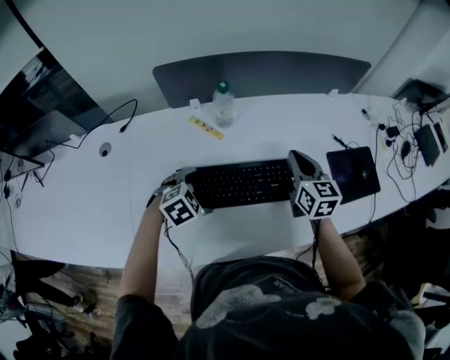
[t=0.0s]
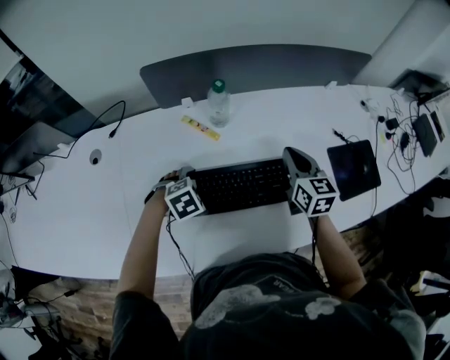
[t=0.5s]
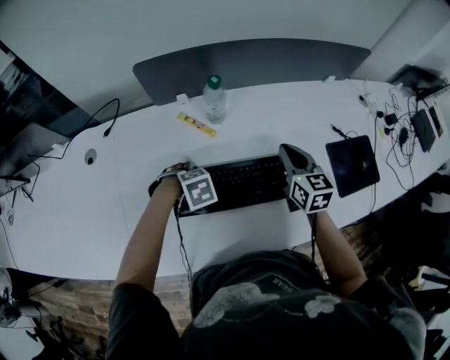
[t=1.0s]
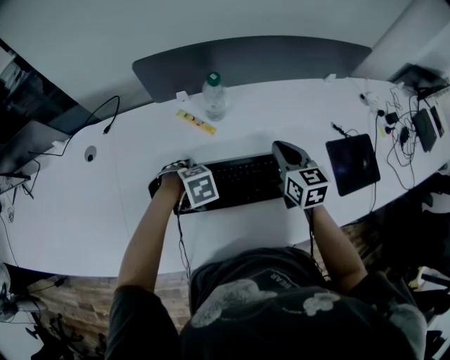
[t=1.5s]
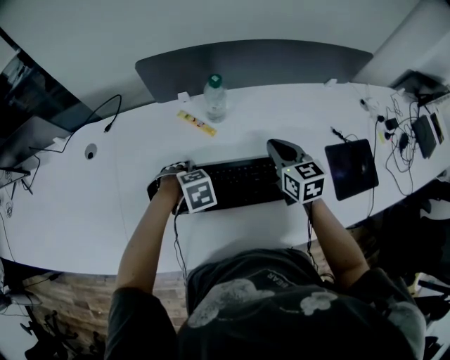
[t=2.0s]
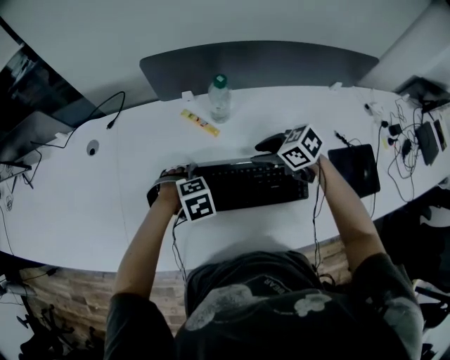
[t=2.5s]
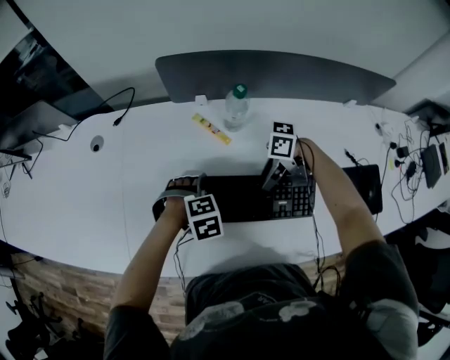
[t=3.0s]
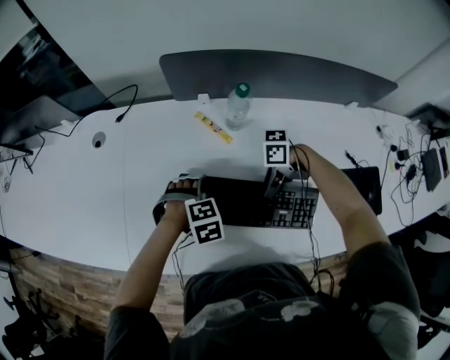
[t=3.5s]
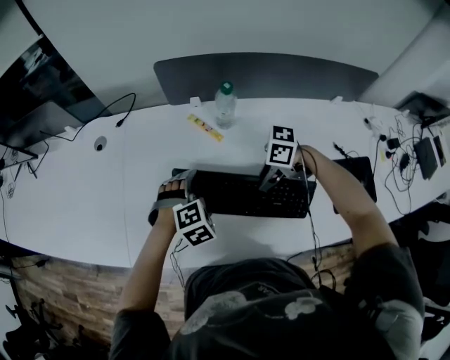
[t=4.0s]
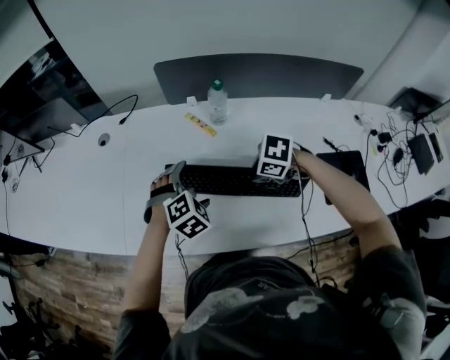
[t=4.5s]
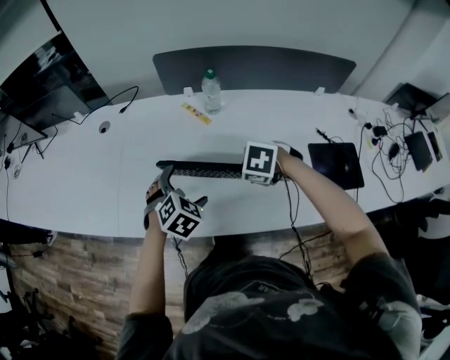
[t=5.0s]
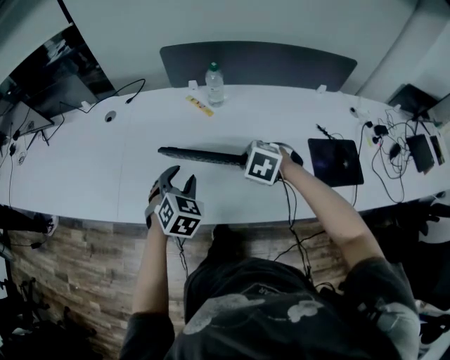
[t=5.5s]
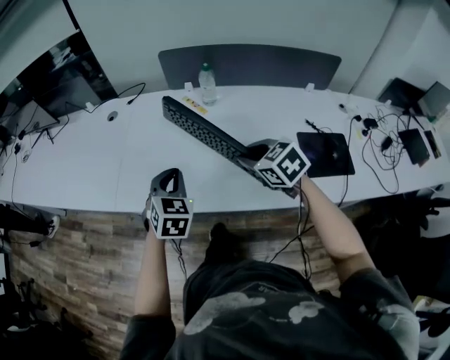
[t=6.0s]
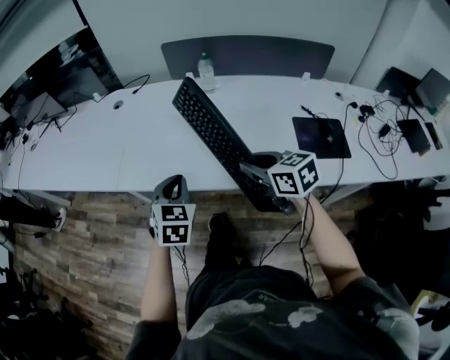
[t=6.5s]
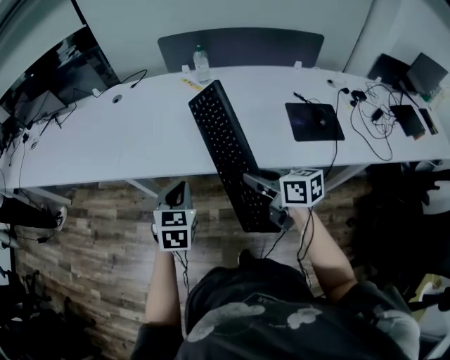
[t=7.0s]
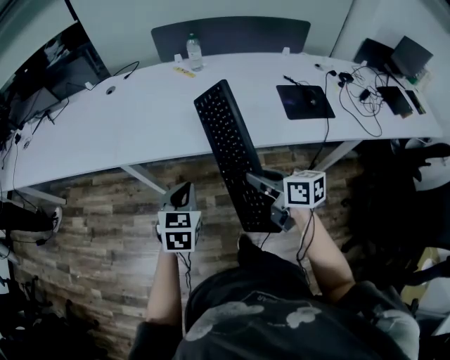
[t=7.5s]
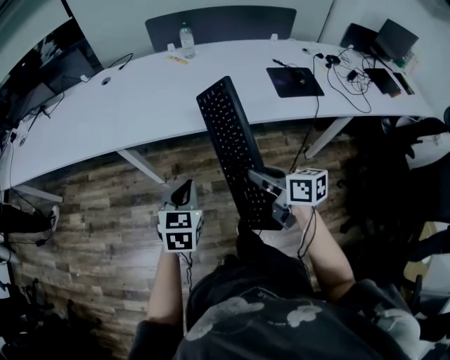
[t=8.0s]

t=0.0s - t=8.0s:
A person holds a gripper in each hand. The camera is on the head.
t=0.0s - t=2.0s: The left gripper turns by some 30 degrees; the right gripper shifts by roughly 5 cm.
t=2.0s - t=4.0s: The left gripper heads upward, covering roughly 5 cm, and rotates some 30 degrees. The right gripper changes place by about 15 cm, rotates about 90 degrees, and opens.
t=4.0s - t=6.0s: The left gripper shifts by approximately 20 cm, angles its fingers upward, by roughly 30 degrees, and closes. Meanwhile the right gripper is displaced upward by roughly 15 cm, and swivels roughly 60 degrees.
t=6.0s - t=8.0s: The grippers both shift backward by some 35 cm. The right gripper rolls clockwise, seen from behind, by approximately 50 degrees.

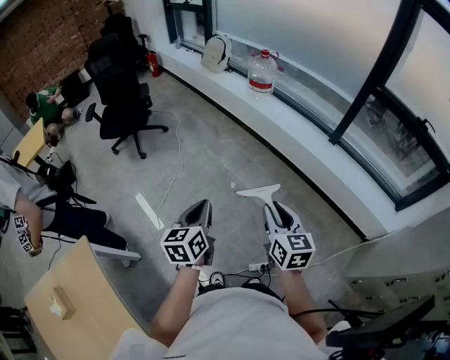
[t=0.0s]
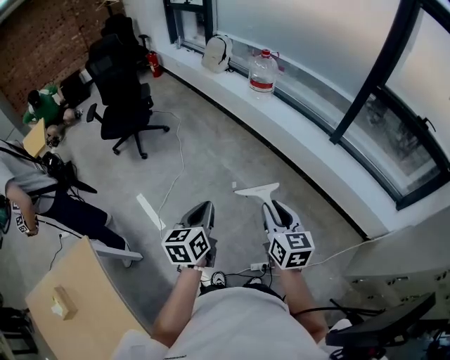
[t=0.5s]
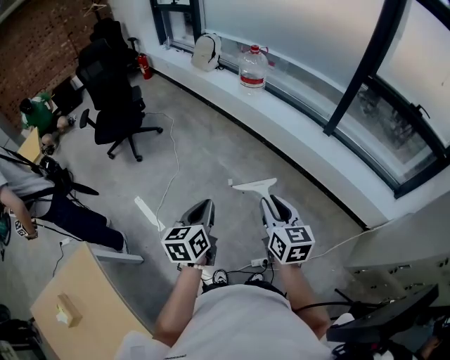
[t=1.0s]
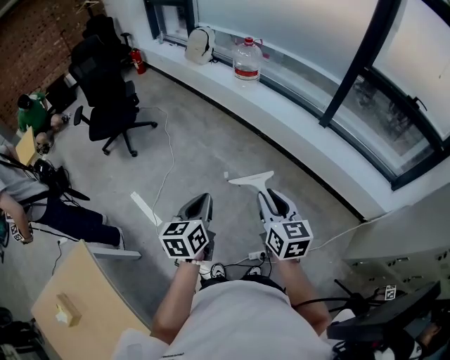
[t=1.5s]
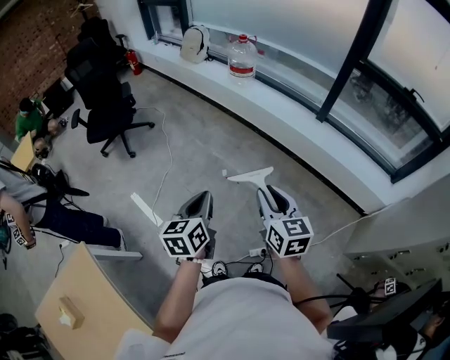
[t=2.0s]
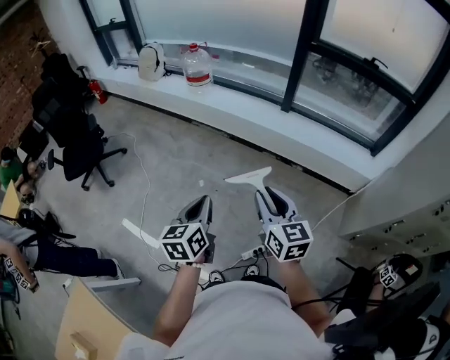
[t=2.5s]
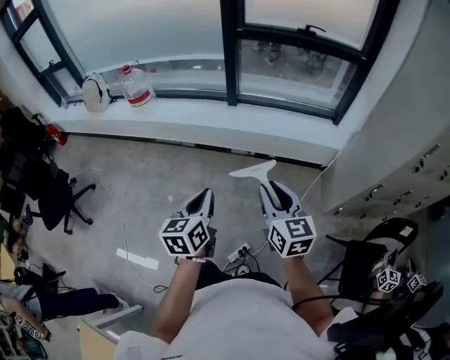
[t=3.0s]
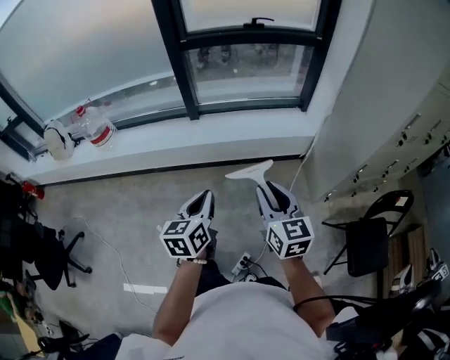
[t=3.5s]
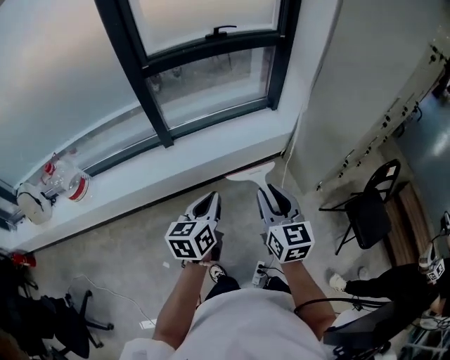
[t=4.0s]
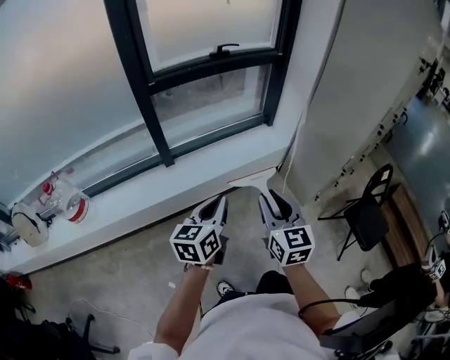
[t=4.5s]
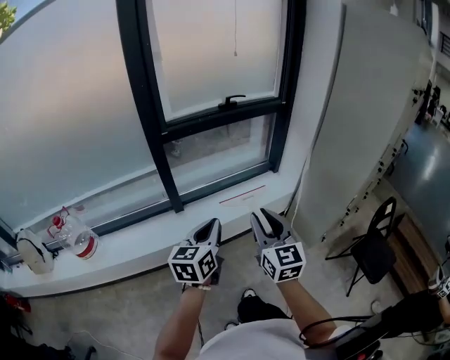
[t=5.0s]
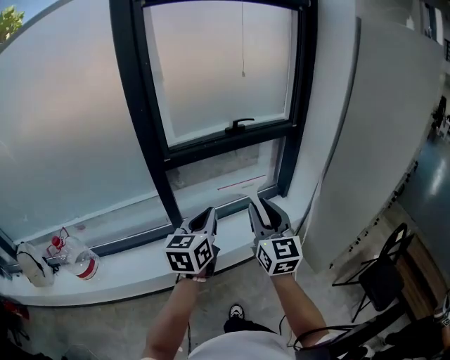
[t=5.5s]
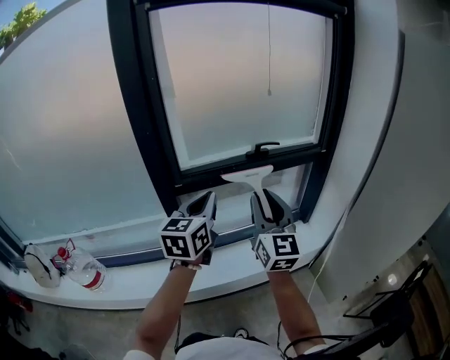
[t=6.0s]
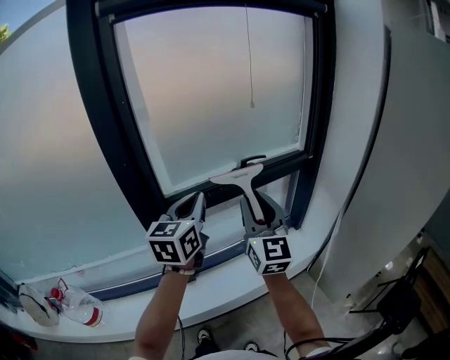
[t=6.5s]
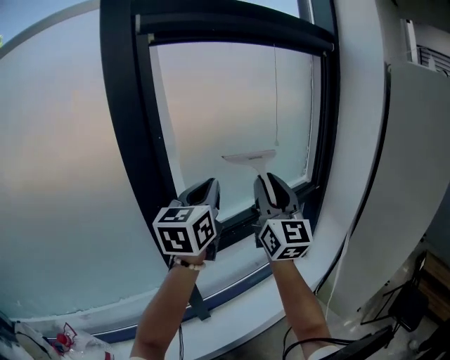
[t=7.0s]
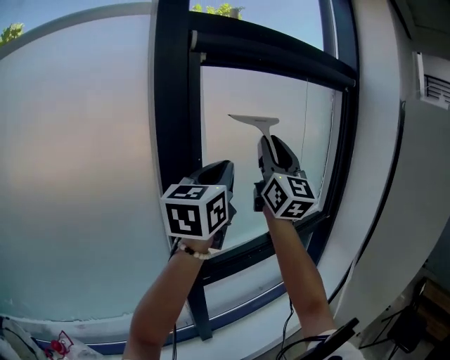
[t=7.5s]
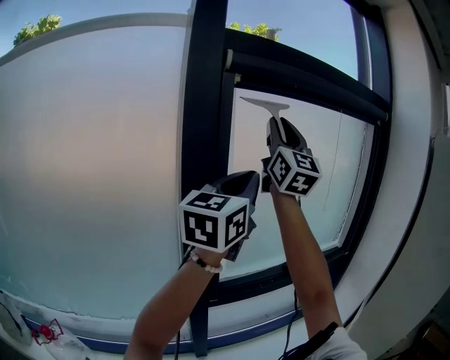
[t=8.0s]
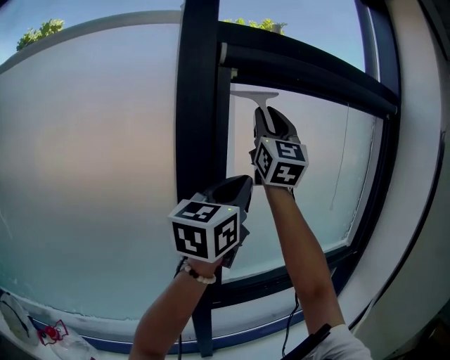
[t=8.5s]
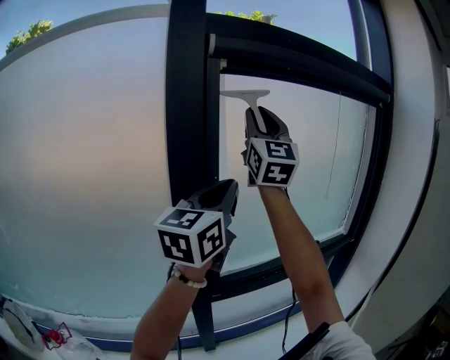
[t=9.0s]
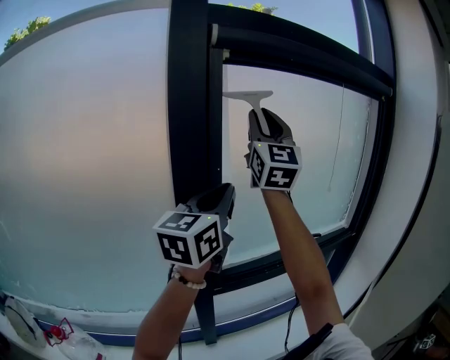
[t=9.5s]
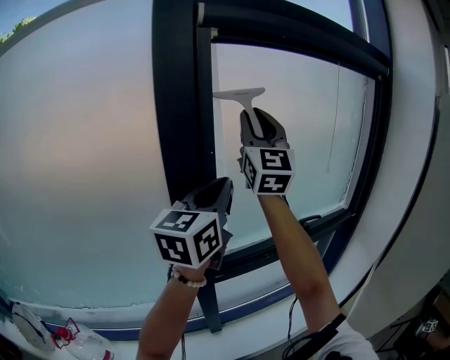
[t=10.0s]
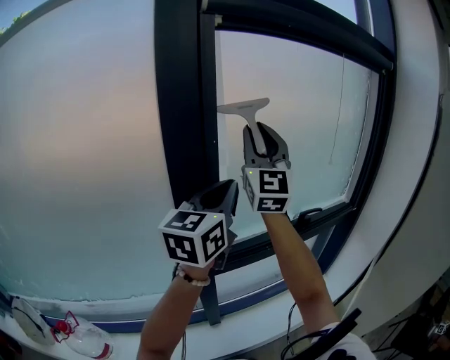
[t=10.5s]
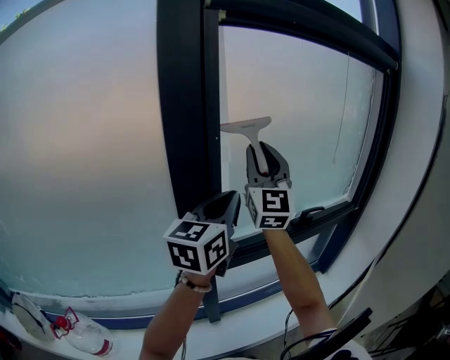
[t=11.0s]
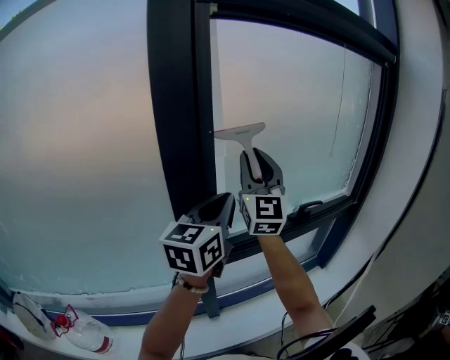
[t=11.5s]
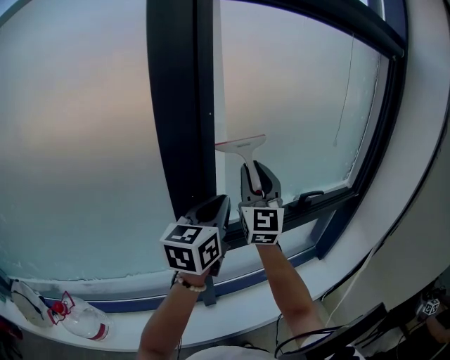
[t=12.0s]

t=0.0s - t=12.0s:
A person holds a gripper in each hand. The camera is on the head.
t=0.0s - t=2.0s: The grippers stay close to where they were, moving slightly.
t=2.0s - t=4.0s: The two grippers travel together, some 50 cm. The left gripper rotates some 70 degrees. Meanwhile the right gripper changes its angle by approximately 60 degrees.
t=4.0s - t=6.0s: The two grippers travel together, forward and to the left, some 40 cm. Both grippers move upward, approximately 20 cm. The left gripper turns by approximately 20 degrees. Meanwhile the right gripper turns by about 30 degrees.
t=6.0s - t=8.0s: The two grippers go approximately 50 cm upward, to the left and forward. The right gripper turns by approximately 30 degrees, while the left gripper changes its angle by about 30 degrees.
t=8.0s - t=10.0s: Both grippers travel together downward, approximately 10 cm.
t=10.0s - t=12.0s: The right gripper travels downward by some 25 cm. Meanwhile the left gripper moves downward, approximately 15 cm.

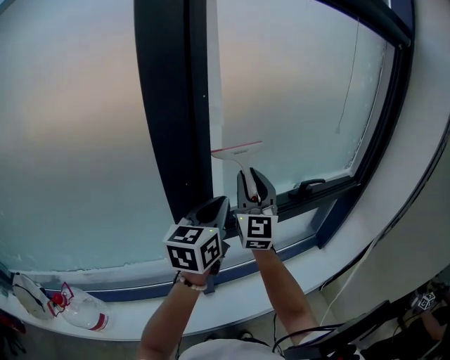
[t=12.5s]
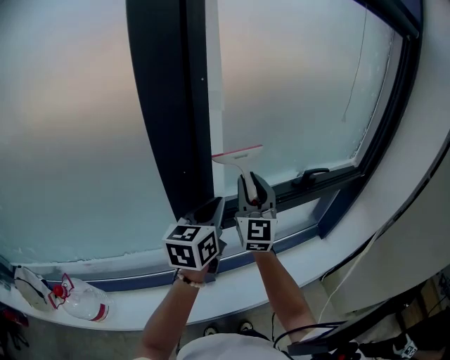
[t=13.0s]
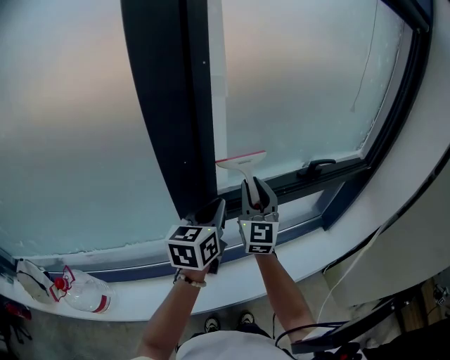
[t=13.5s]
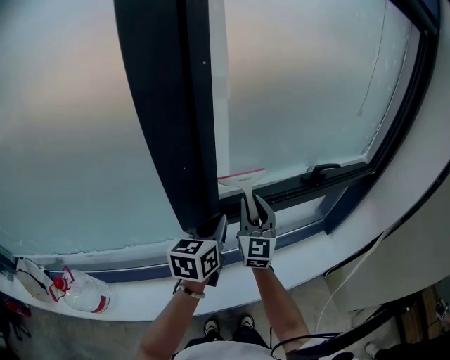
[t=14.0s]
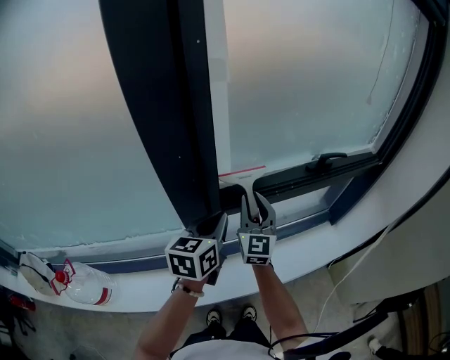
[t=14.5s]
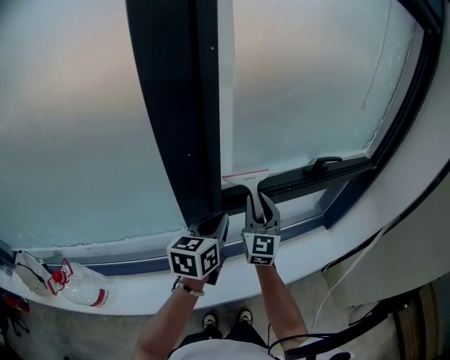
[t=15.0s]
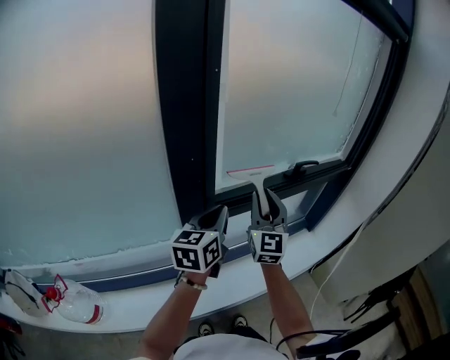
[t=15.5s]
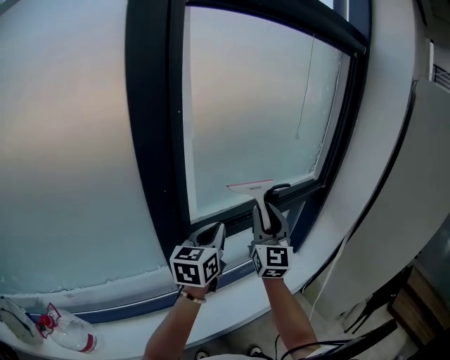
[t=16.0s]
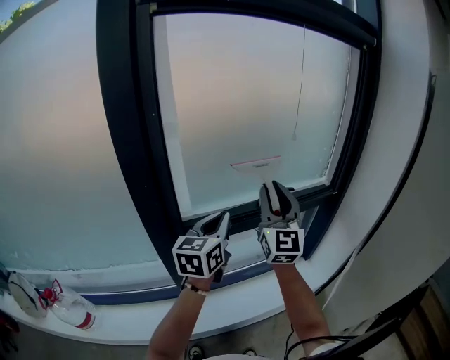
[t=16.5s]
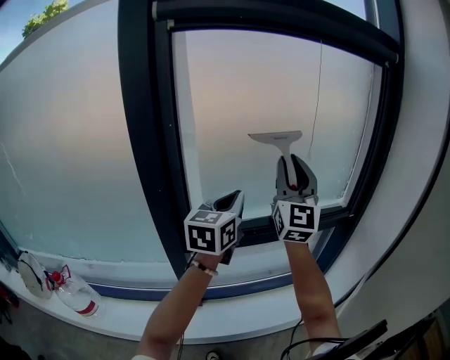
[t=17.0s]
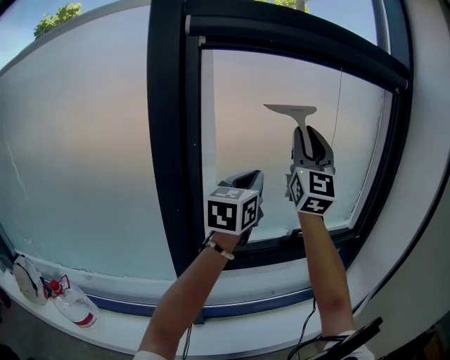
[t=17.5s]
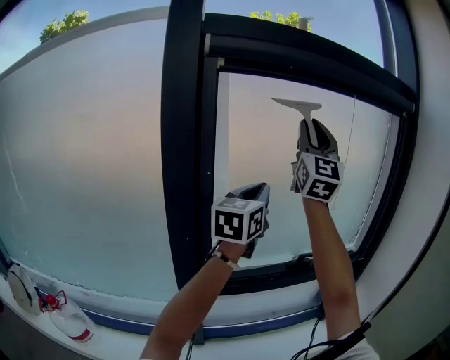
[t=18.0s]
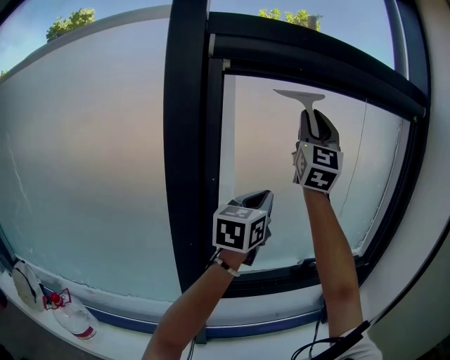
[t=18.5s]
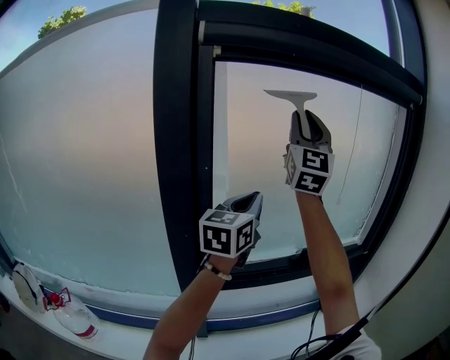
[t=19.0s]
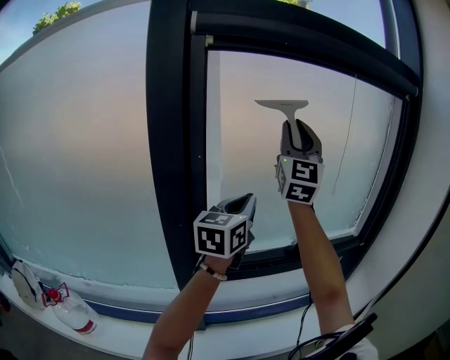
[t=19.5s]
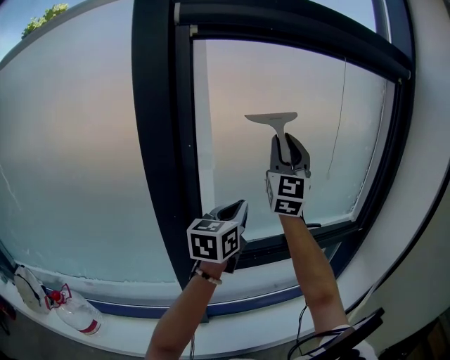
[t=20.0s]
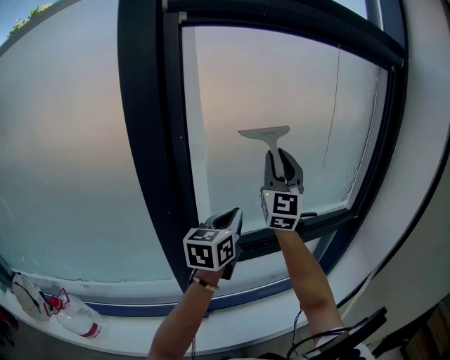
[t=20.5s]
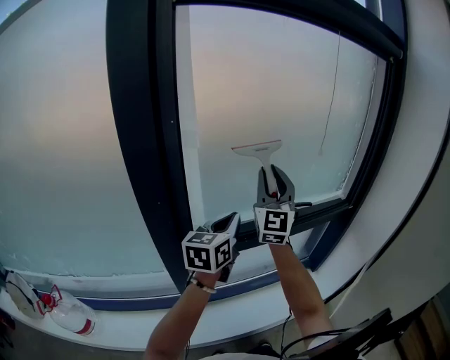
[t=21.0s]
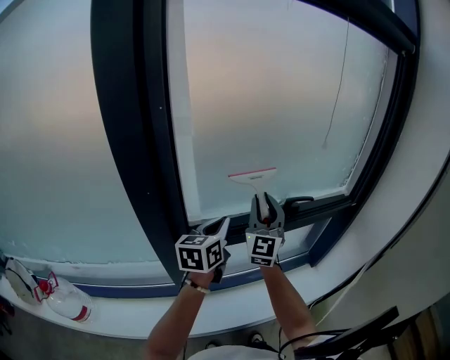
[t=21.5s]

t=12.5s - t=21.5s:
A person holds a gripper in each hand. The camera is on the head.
t=12.5s - t=14.5s: Both grippers move downward, some 20 cm.
t=14.5s - t=17.0s: Both grippers move upward and to the right, approximately 35 cm. The left gripper swivels approximately 20 degrees; the right gripper turns by roughly 30 degrees.
t=17.0s - t=19.5s: The left gripper travels to the left, upward and forward by some 10 cm. Meanwhile the right gripper is displaced upward, to the left and forward by about 20 cm.
t=19.5s - t=21.5s: The left gripper moves downward, approximately 25 cm. The right gripper travels downward by approximately 35 cm.
